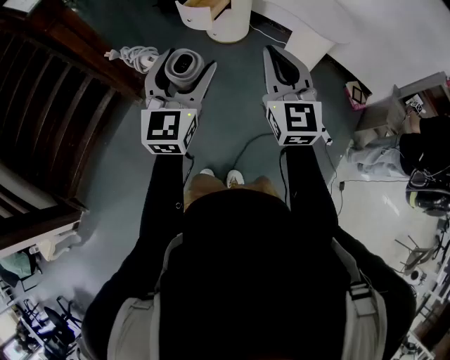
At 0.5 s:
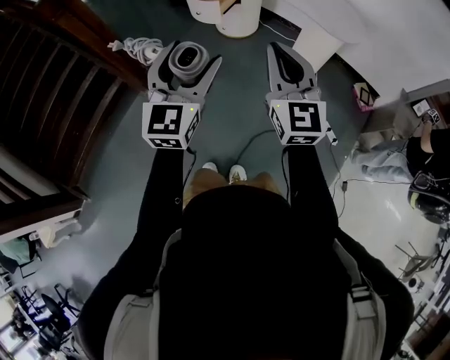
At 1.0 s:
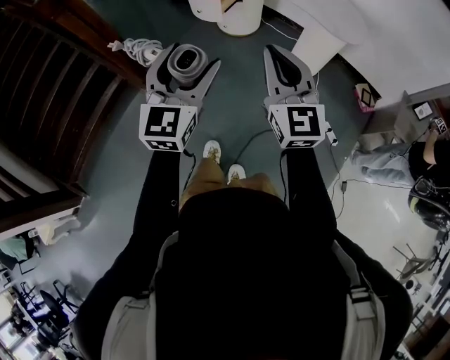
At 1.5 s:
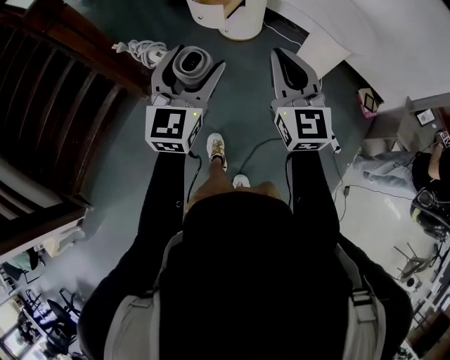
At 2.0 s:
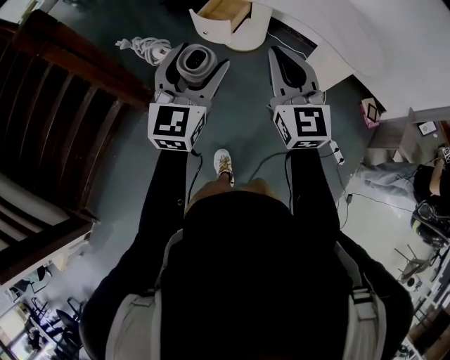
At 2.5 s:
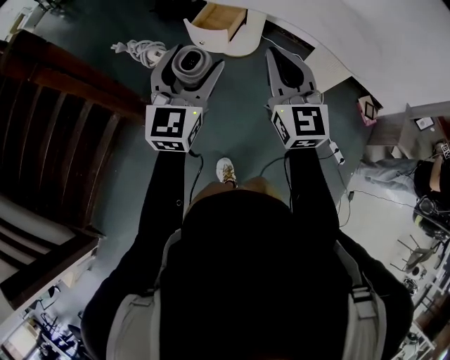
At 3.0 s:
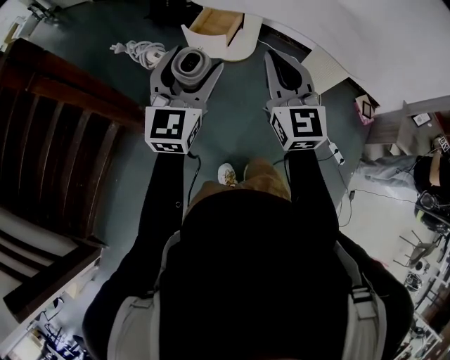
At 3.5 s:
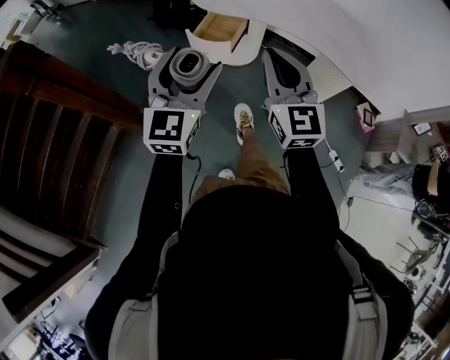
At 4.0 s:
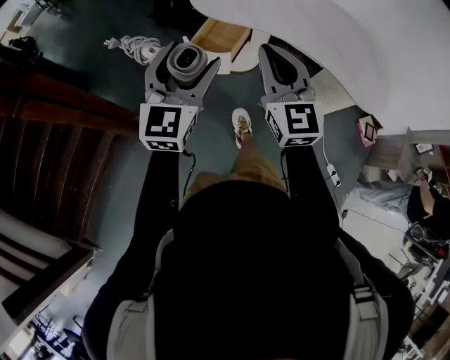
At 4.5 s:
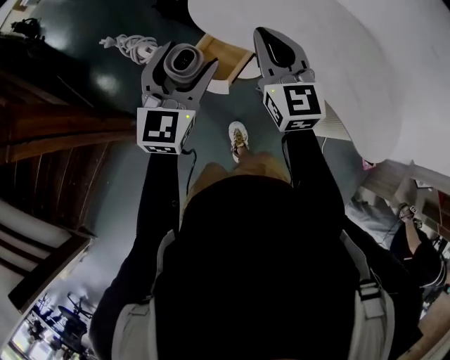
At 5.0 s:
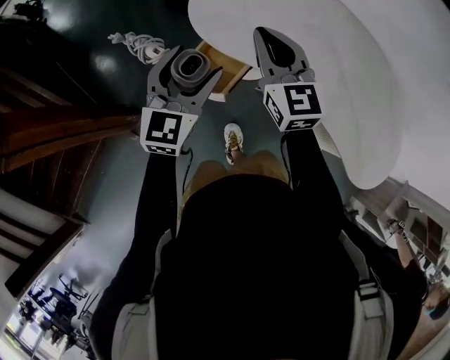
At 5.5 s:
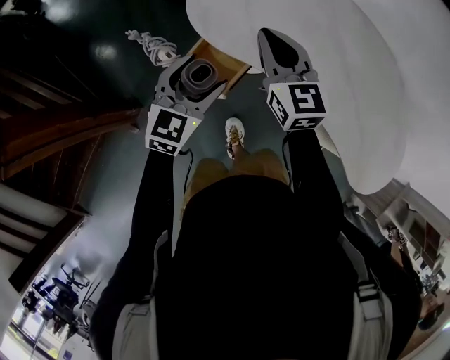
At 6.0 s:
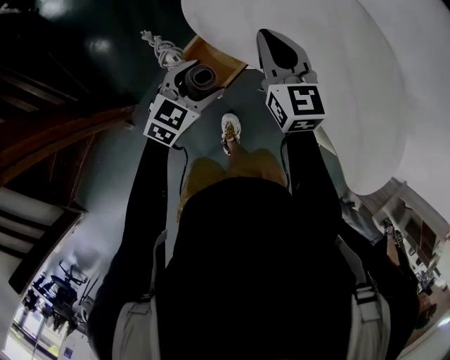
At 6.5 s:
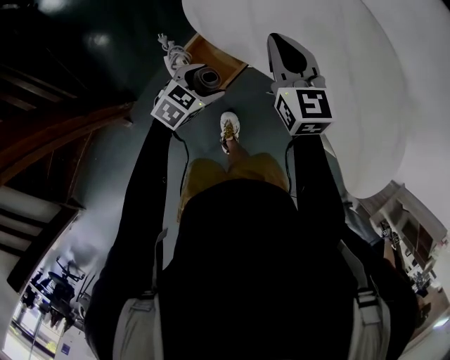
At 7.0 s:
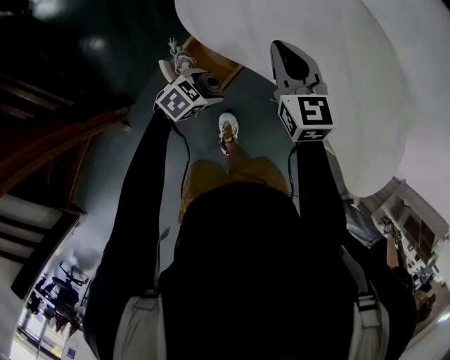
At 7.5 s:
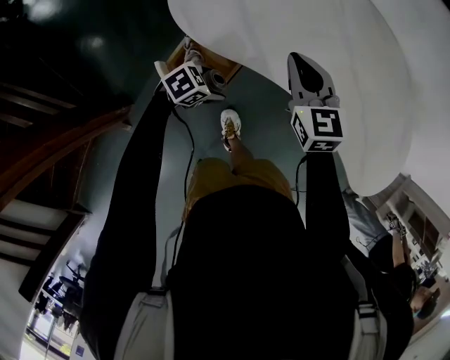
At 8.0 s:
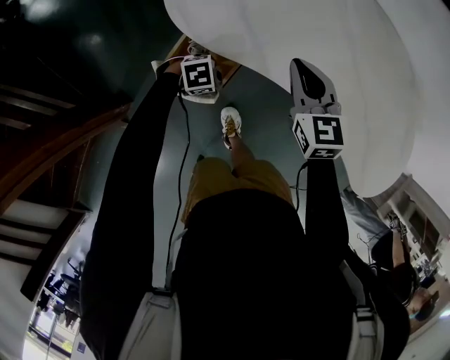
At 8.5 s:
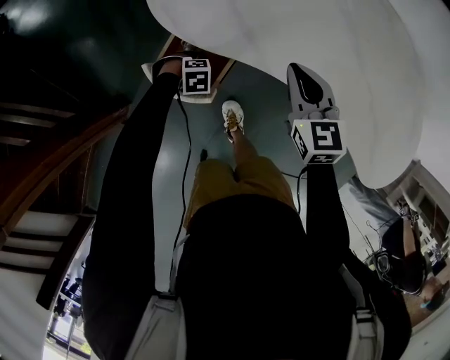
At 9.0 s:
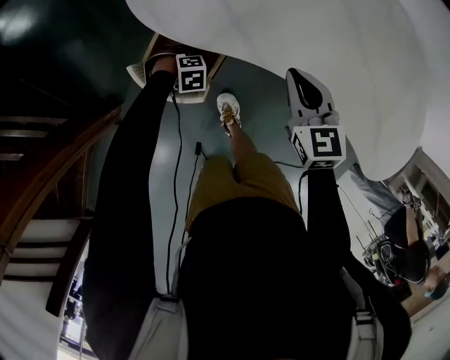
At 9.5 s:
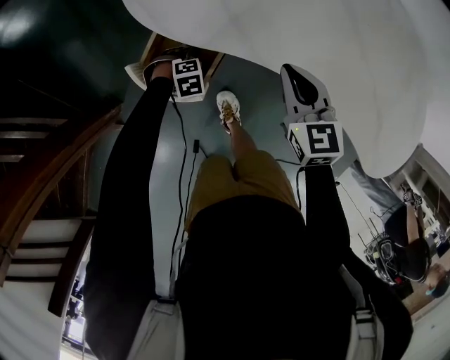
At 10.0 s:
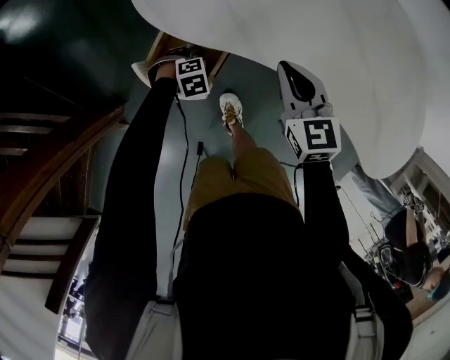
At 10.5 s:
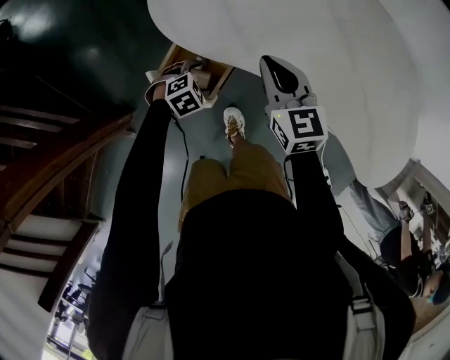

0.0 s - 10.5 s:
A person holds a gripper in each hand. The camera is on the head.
0.0 s - 2.0 s: The right gripper heads forward and to the left, covering roughly 20 cm. The left gripper shifts about 20 cm forward.
2.0 s - 4.0 s: The grippers both shift forward by roughly 20 cm.
4.0 s - 6.5 s: The left gripper is displaced downward and forward by approximately 40 cm, and points its fingers roughly 50 degrees further downward; the right gripper shifts about 35 cm forward and downward, and swivels approximately 30 degrees.
6.5 s - 8.5 s: The right gripper goes some 10 cm downward; the left gripper travels downward by some 20 cm, and points its fingers roughly 30 degrees further downward.
8.5 s - 10.5 s: The right gripper moves some 5 cm. The left gripper shifts approximately 5 cm upward, and rotates roughly 30 degrees.

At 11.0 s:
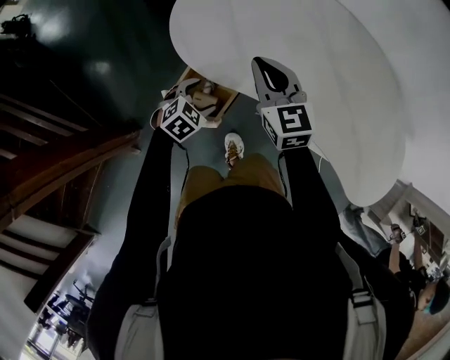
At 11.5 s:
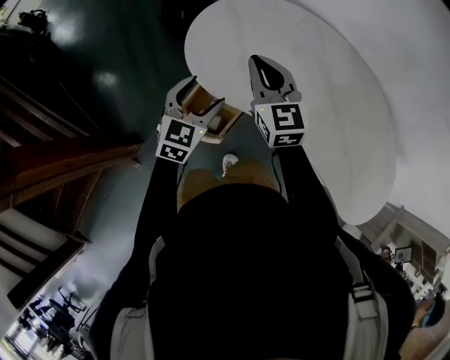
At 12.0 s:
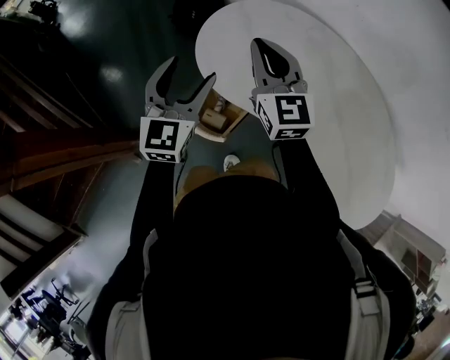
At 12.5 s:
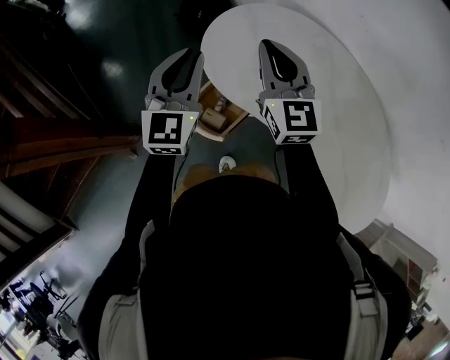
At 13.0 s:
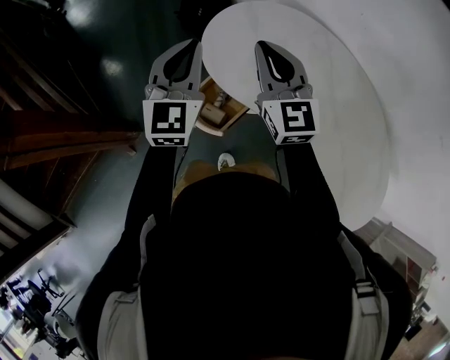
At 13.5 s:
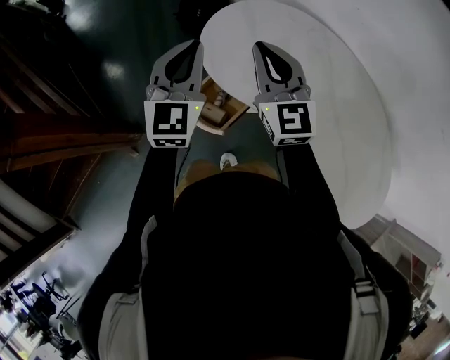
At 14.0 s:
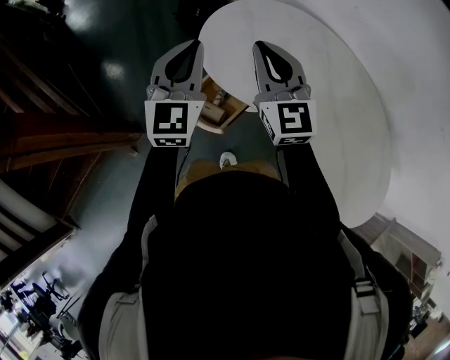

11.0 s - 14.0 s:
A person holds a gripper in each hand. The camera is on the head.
11.0 s - 12.5 s: The left gripper shifts about 30 cm upward, tilts its fingers approximately 60 degrees upward, and closes, while the right gripper heads upward and to the left, covering some 15 cm.
12.5 s - 14.0 s: The grippers stay close to where they were, moving slightly.

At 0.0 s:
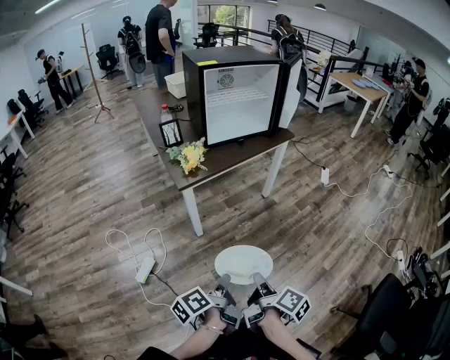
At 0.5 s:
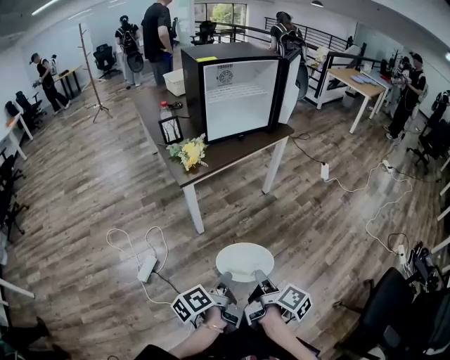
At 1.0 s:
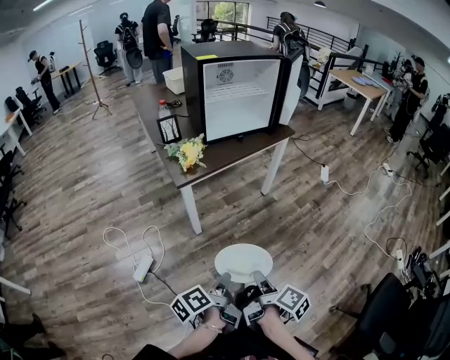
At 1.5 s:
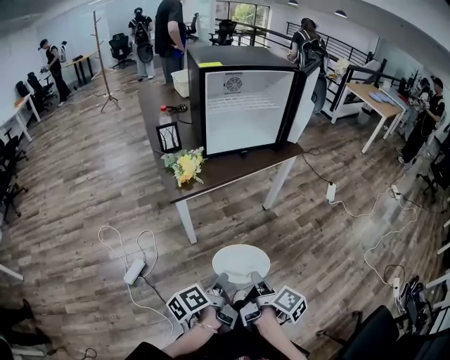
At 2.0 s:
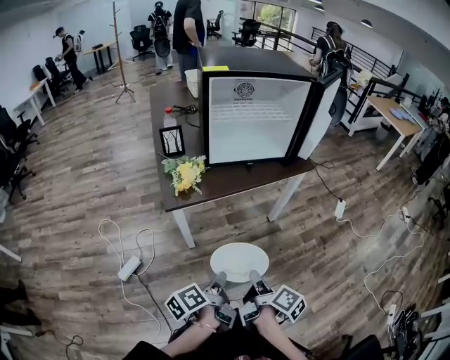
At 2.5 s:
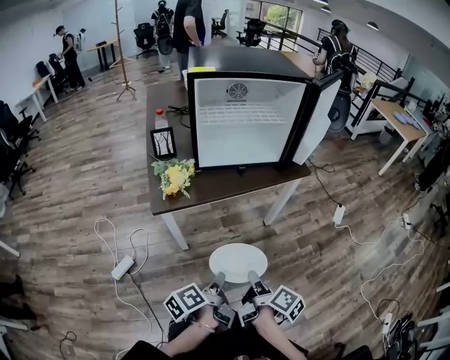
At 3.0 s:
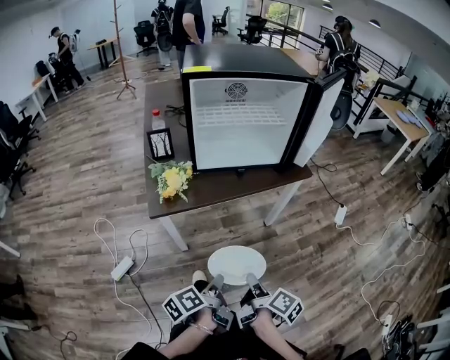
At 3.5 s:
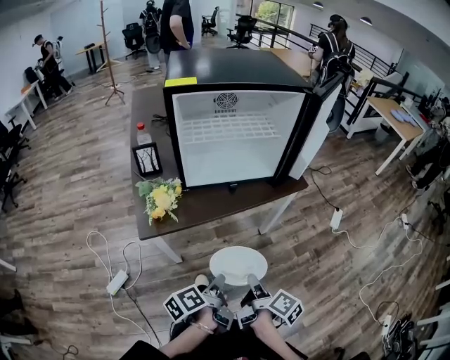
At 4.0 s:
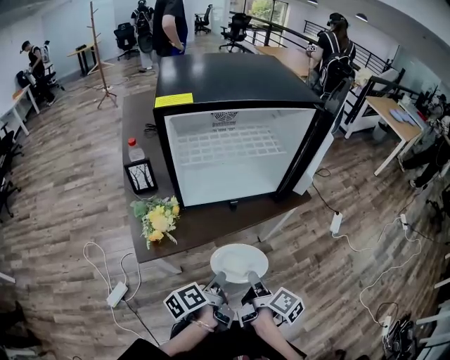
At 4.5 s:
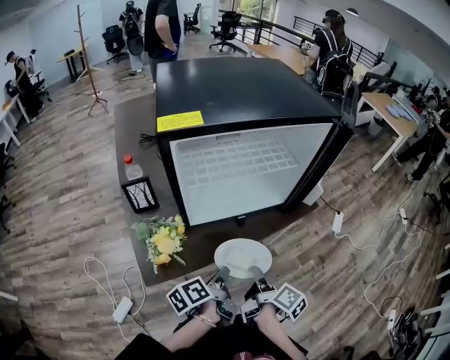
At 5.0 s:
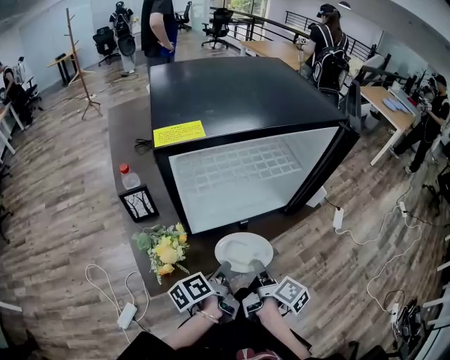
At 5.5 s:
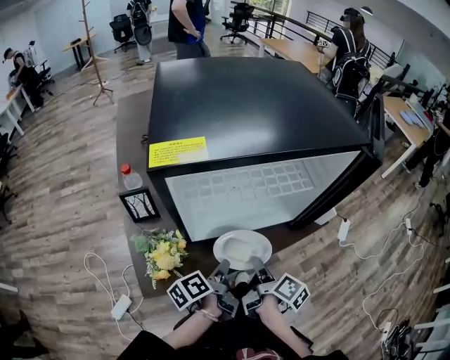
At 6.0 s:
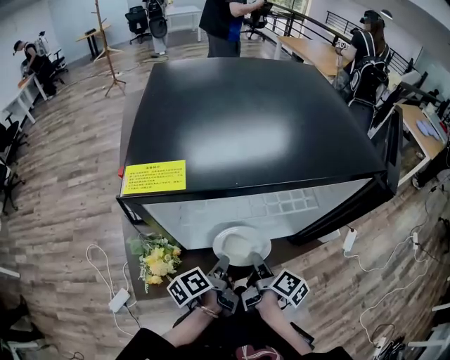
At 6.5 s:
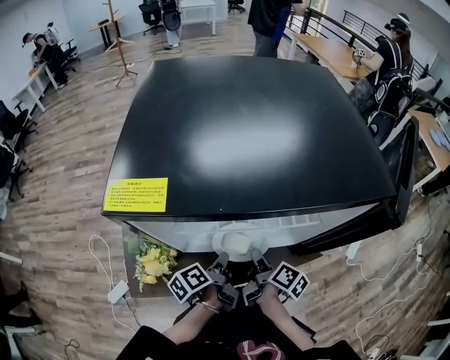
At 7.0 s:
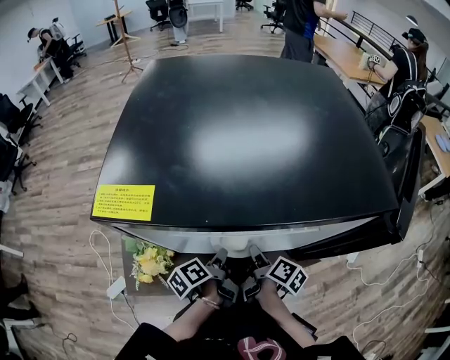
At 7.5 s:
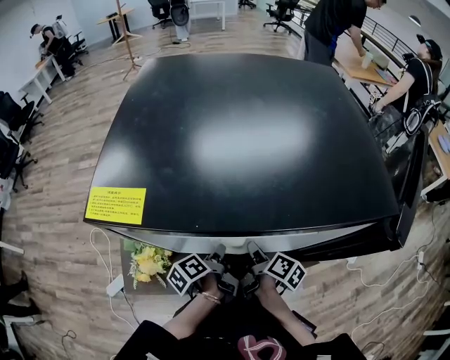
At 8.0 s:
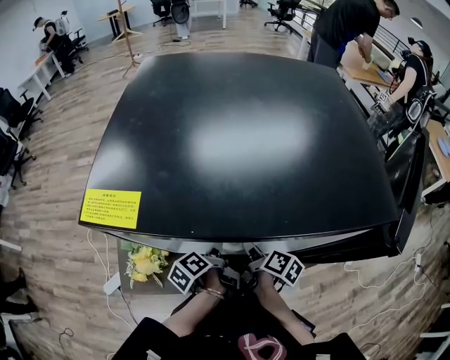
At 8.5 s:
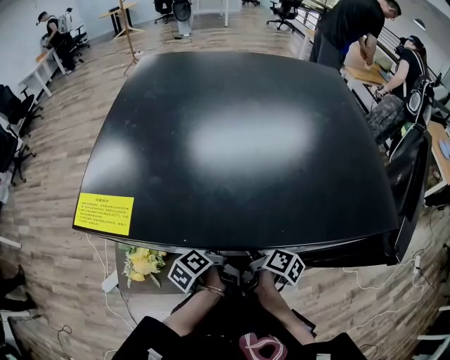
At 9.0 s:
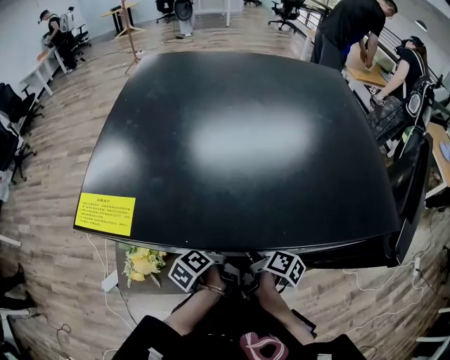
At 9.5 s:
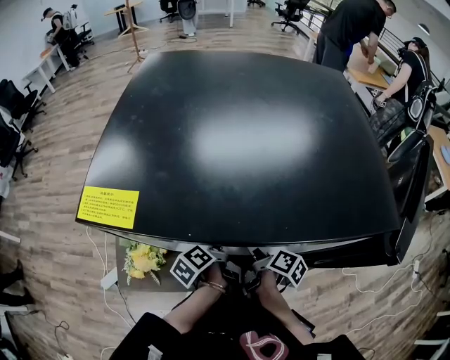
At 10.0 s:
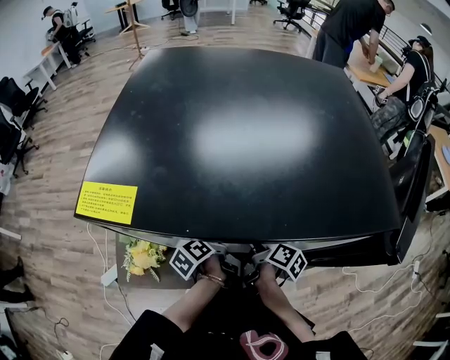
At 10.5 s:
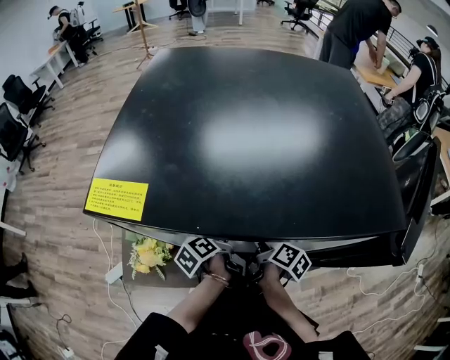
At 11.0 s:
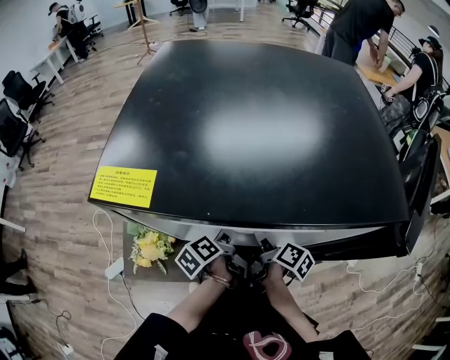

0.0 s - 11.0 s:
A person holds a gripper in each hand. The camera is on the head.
0.0 s - 2.0 s: The right gripper shifts by approximately 25 cm.
2.0 s - 3.5 s: The right gripper ends up approximately 15 cm from where it was.
3.5 s - 5.5 s: The right gripper ends up roughly 30 cm from where it was.
5.5 s - 7.5 s: The right gripper moves about 15 cm.

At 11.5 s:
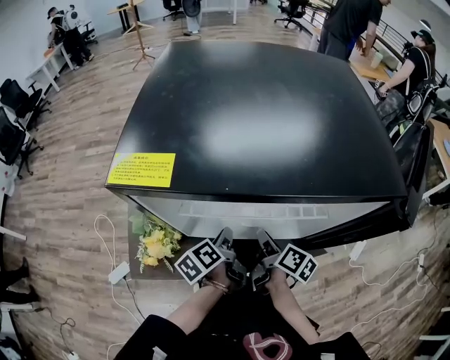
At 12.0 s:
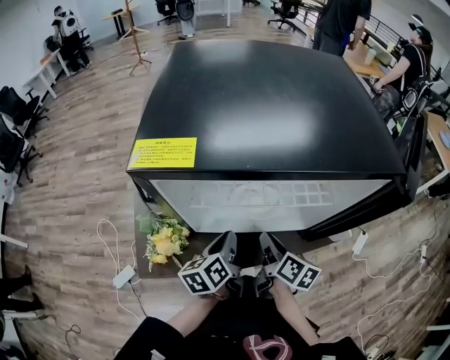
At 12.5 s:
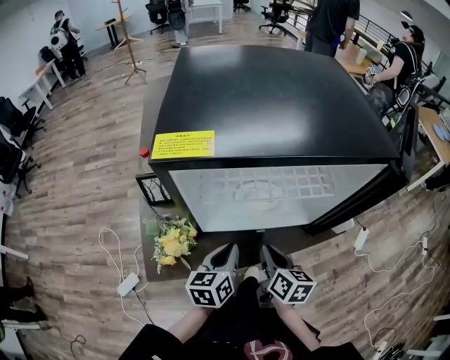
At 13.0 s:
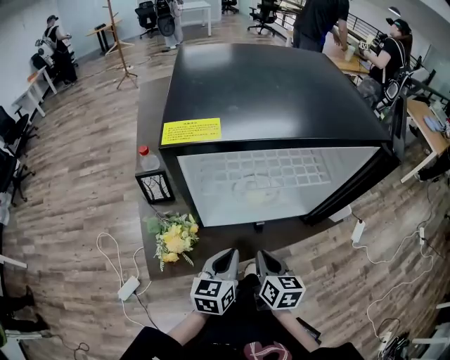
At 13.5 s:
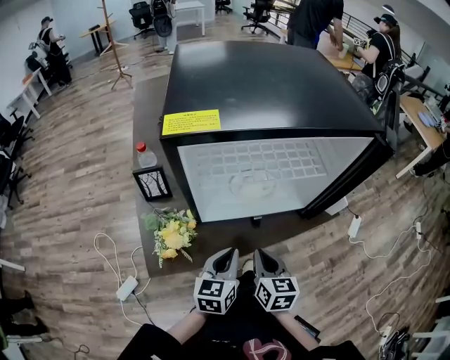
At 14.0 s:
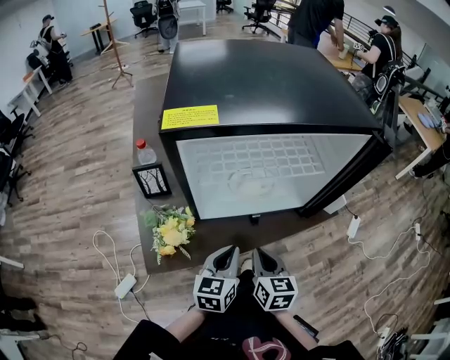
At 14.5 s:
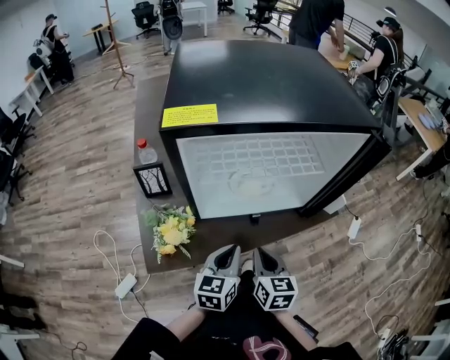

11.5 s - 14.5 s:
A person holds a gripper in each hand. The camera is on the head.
11.5 s - 13.0 s: The right gripper moves about 15 cm, turns by some 40 degrees, and closes.
